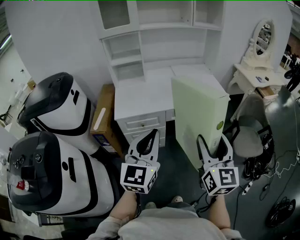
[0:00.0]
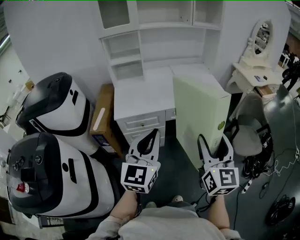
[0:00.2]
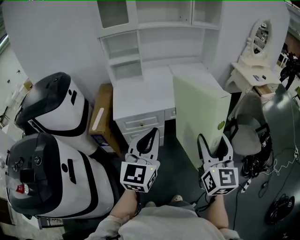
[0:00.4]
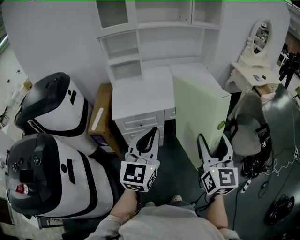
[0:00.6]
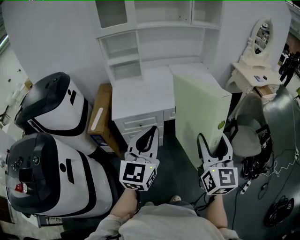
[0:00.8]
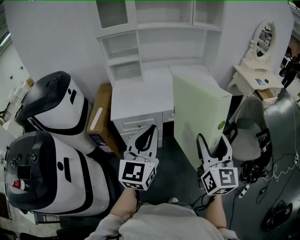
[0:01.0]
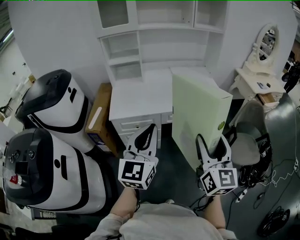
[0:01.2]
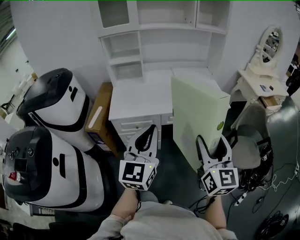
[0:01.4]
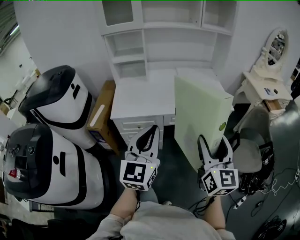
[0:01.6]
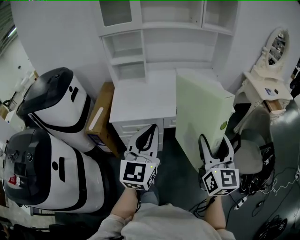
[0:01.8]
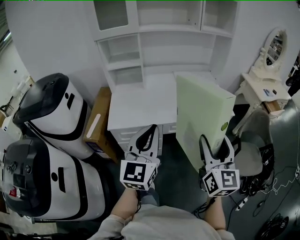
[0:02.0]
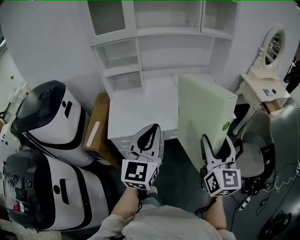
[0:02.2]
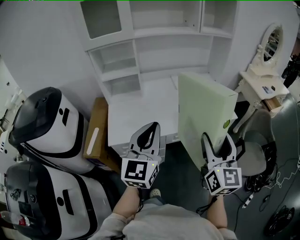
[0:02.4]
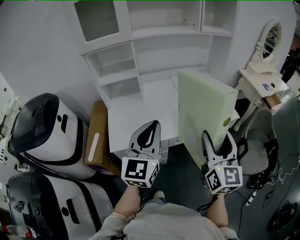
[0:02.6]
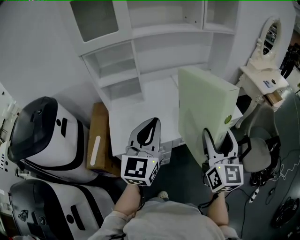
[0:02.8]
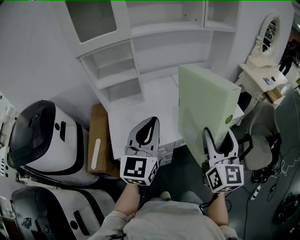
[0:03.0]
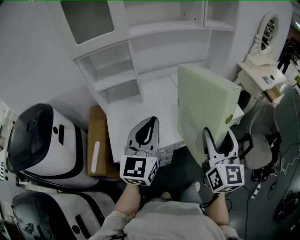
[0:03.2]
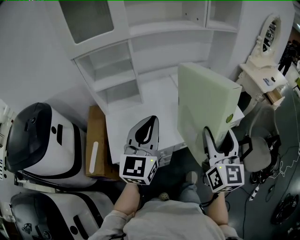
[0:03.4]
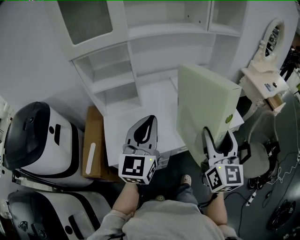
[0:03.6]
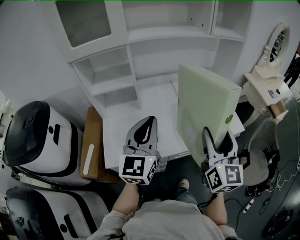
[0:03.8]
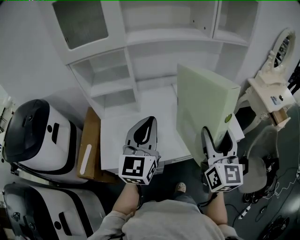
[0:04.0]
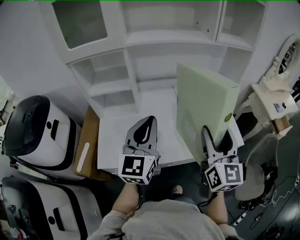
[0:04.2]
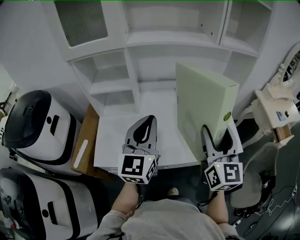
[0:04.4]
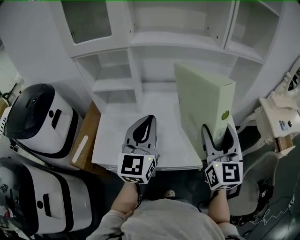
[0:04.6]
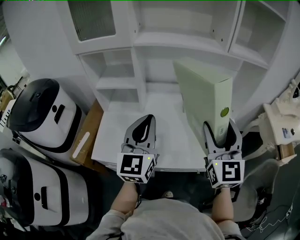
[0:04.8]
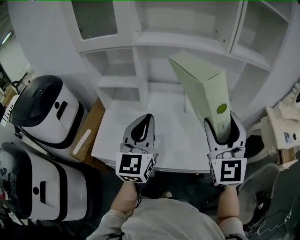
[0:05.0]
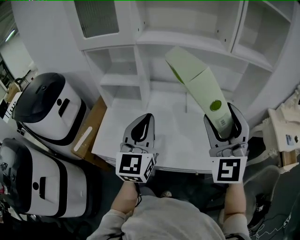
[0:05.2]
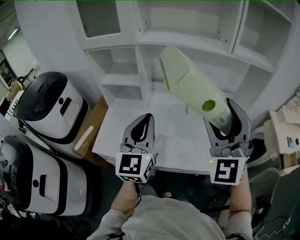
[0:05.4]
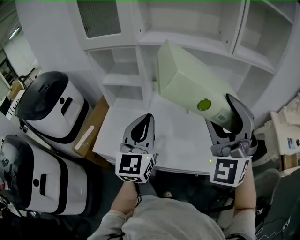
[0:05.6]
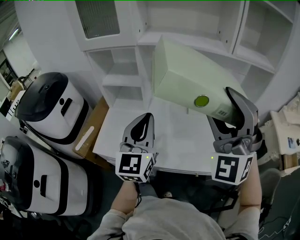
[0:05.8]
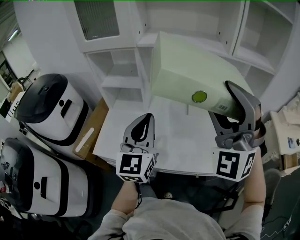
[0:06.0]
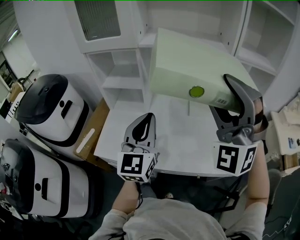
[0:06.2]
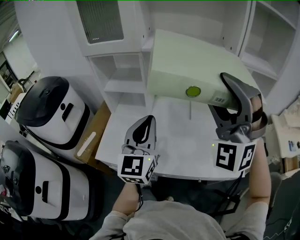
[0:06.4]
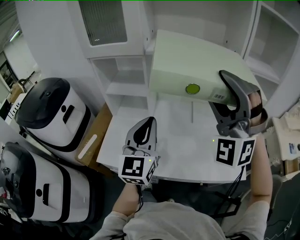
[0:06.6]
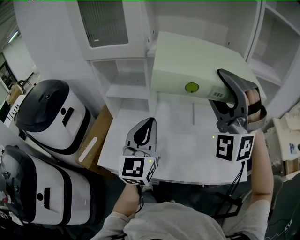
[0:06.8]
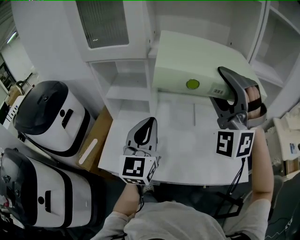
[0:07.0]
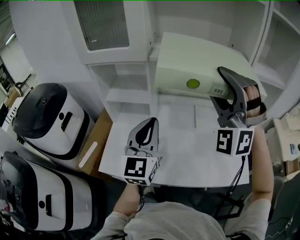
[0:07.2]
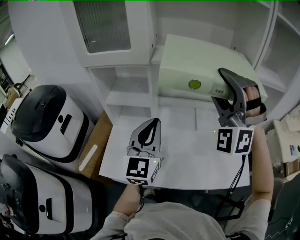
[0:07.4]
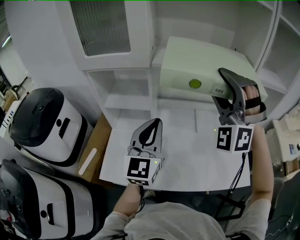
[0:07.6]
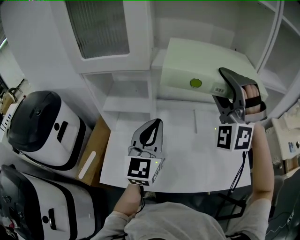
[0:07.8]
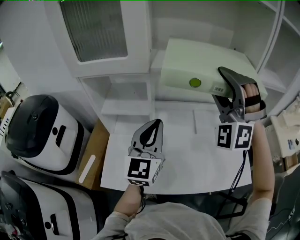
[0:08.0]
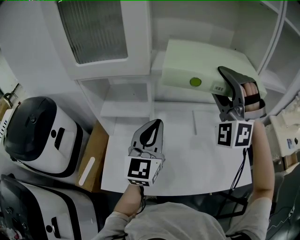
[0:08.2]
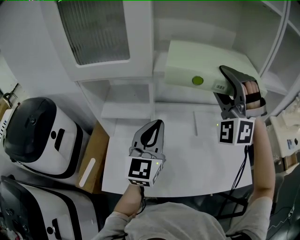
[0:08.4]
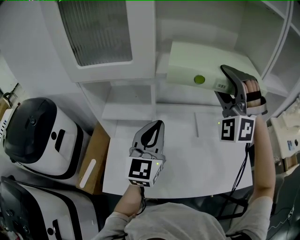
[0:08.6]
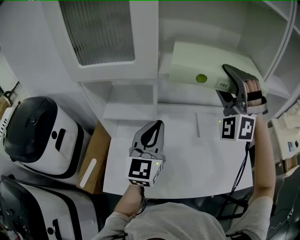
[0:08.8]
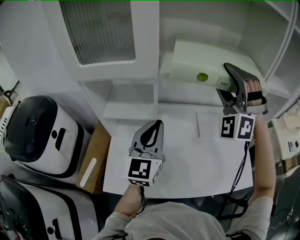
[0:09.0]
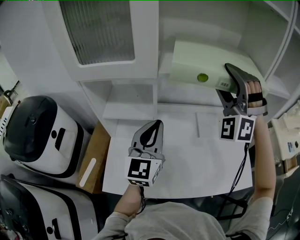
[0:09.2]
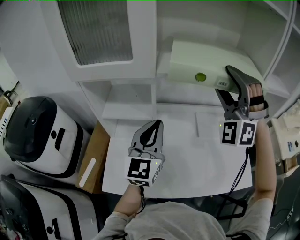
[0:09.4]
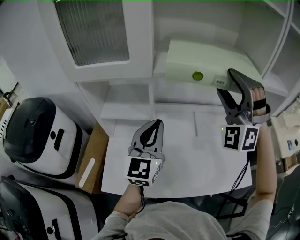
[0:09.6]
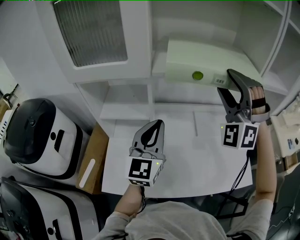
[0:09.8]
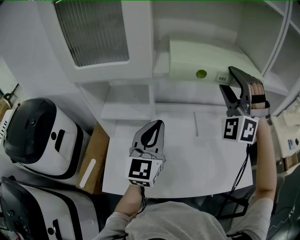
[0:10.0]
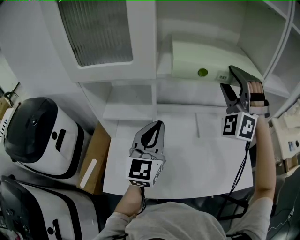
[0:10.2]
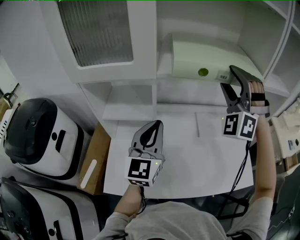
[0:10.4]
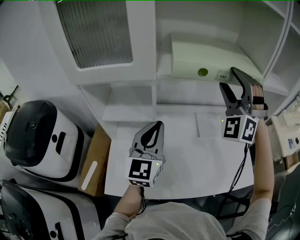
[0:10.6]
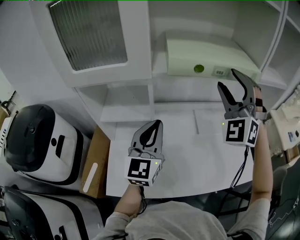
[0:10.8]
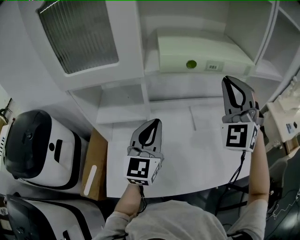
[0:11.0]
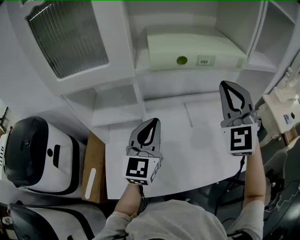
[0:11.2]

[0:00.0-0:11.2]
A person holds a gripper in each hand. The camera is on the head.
0:00.0 to 0:01.6: Both grippers travel together forward, roughly 5 cm.
0:01.6 to 0:03.2: The grippers both shift forward and to the left by some 25 cm.
0:03.2 to 0:04.8: The right gripper shifts approximately 20 cm forward, and changes its angle by roughly 30 degrees, while the left gripper moves forward and to the right, roughly 15 cm, and changes its angle by approximately 20 degrees.
0:04.8 to 0:06.4: The right gripper goes roughly 15 cm upward, to the left and forward, and rotates around the line of its fingers by roughly 70 degrees, counterclockwise from behind.
0:06.4 to 0:08.0: The two grippers go approximately 15 cm forward.
0:08.0 to 0:09.6: The grippers move only a little.
0:09.6 to 0:11.2: The right gripper moves some 5 cm, turns by approximately 40 degrees, and closes its fingers.

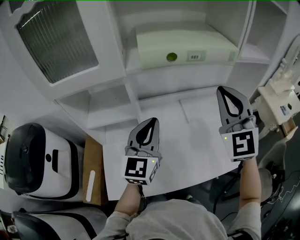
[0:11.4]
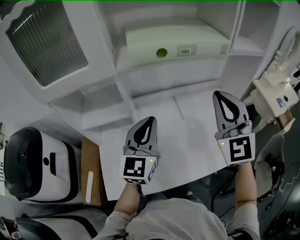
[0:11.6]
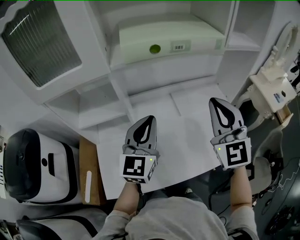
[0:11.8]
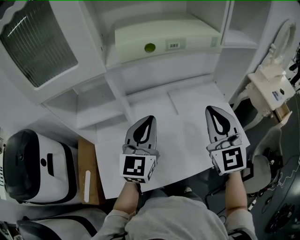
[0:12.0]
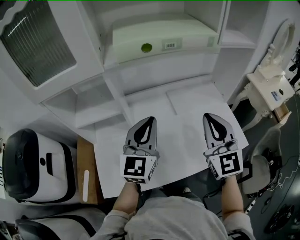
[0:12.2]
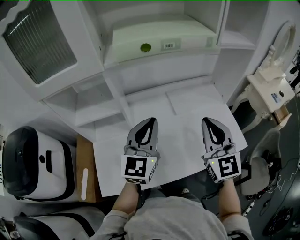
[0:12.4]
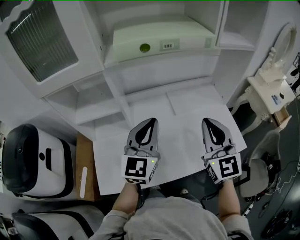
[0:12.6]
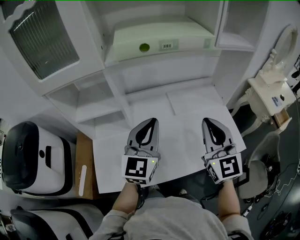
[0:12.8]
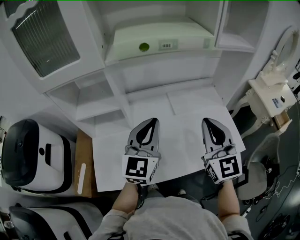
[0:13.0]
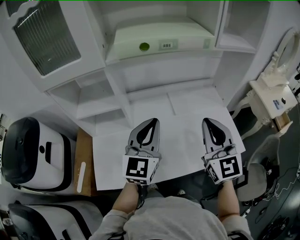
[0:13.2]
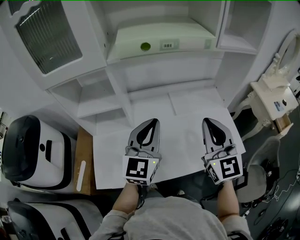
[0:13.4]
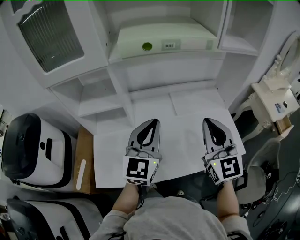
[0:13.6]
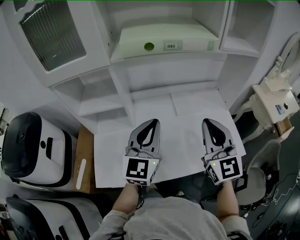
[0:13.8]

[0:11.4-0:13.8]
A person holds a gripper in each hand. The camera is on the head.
0:11.4 to 0:12.6: The left gripper travels to the right by approximately 5 cm; the right gripper is displaced downward and backward by some 15 cm, and swivels some 20 degrees.
0:12.6 to 0:13.8: There are only small adjustments of the grippers.

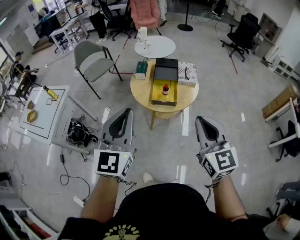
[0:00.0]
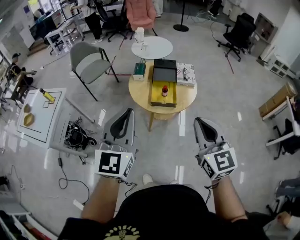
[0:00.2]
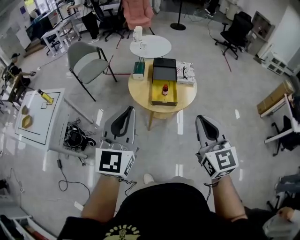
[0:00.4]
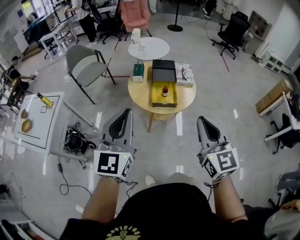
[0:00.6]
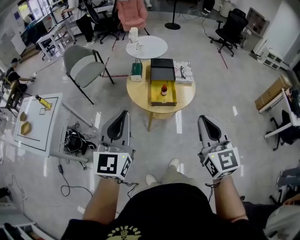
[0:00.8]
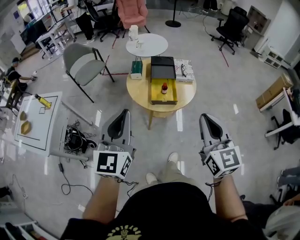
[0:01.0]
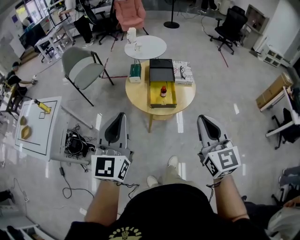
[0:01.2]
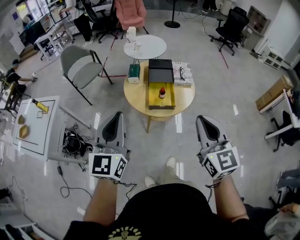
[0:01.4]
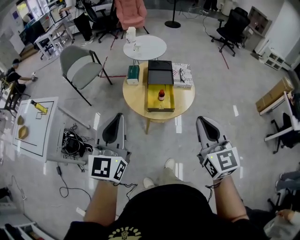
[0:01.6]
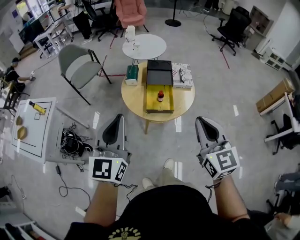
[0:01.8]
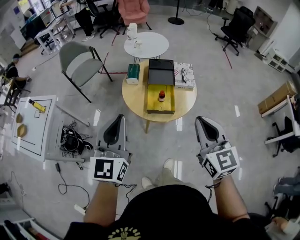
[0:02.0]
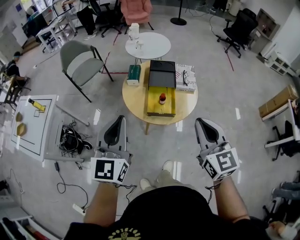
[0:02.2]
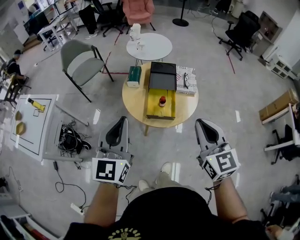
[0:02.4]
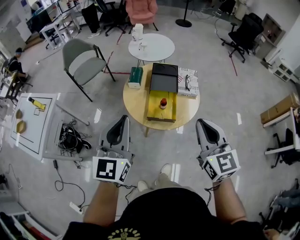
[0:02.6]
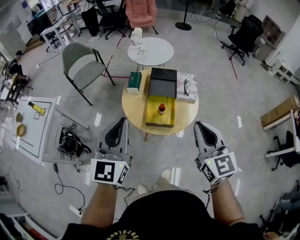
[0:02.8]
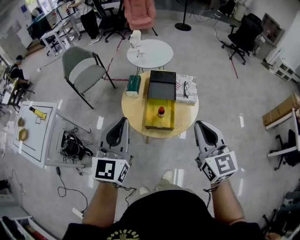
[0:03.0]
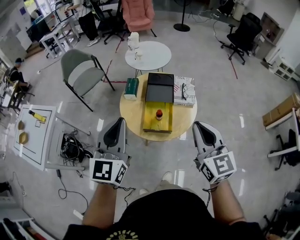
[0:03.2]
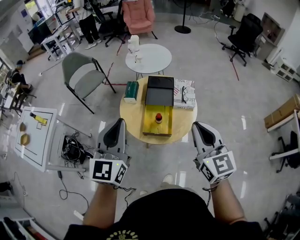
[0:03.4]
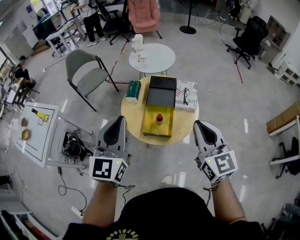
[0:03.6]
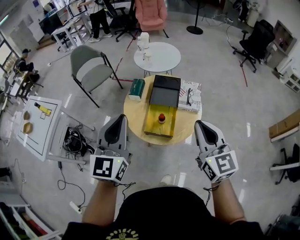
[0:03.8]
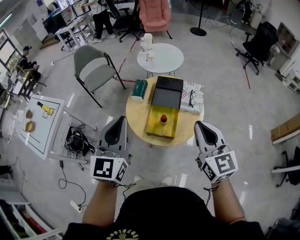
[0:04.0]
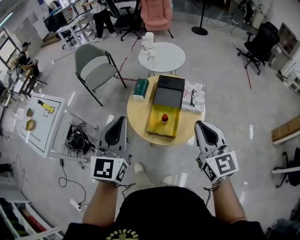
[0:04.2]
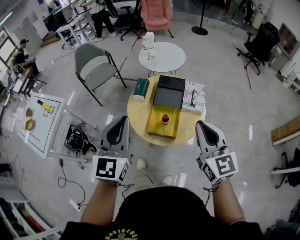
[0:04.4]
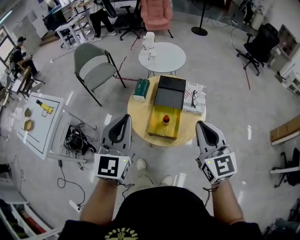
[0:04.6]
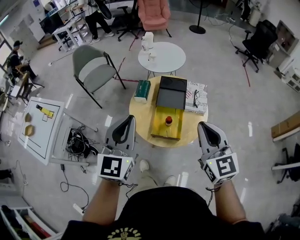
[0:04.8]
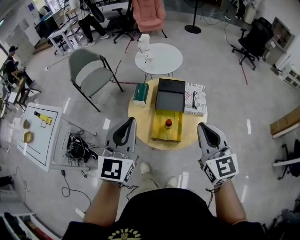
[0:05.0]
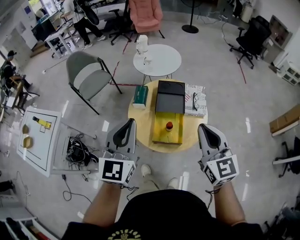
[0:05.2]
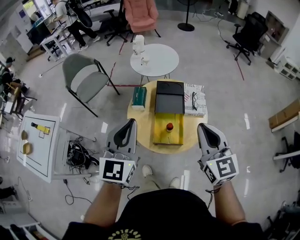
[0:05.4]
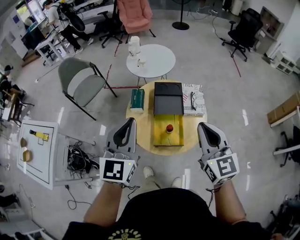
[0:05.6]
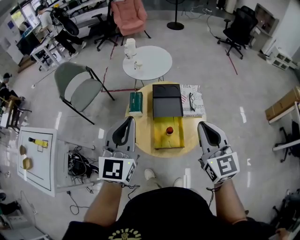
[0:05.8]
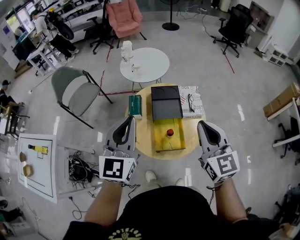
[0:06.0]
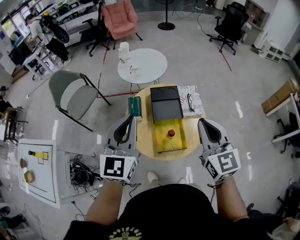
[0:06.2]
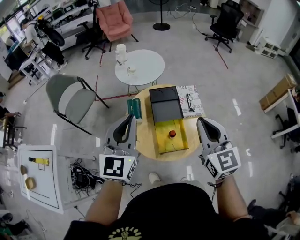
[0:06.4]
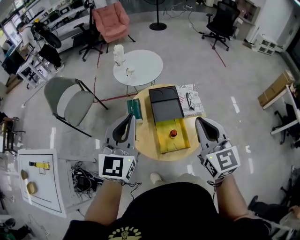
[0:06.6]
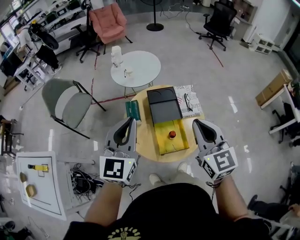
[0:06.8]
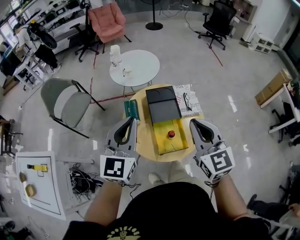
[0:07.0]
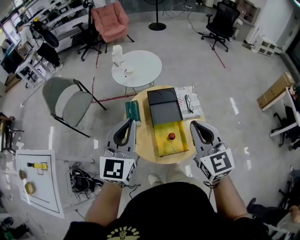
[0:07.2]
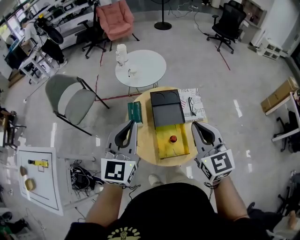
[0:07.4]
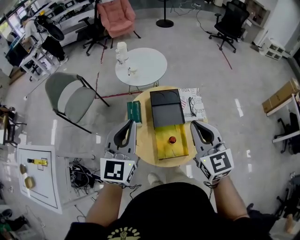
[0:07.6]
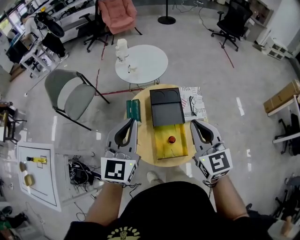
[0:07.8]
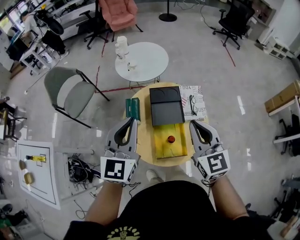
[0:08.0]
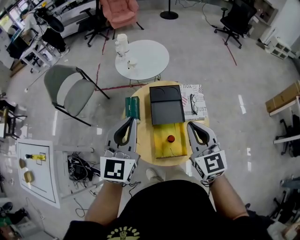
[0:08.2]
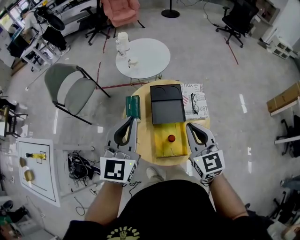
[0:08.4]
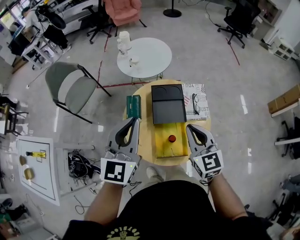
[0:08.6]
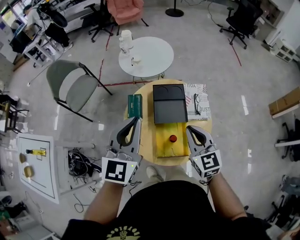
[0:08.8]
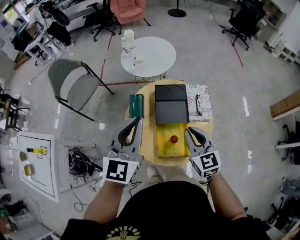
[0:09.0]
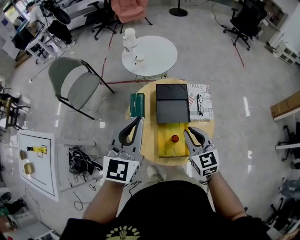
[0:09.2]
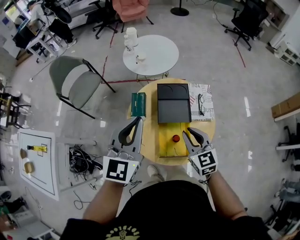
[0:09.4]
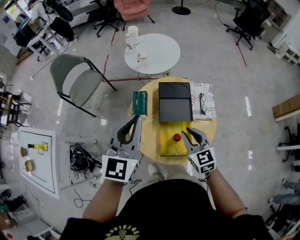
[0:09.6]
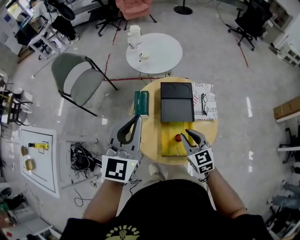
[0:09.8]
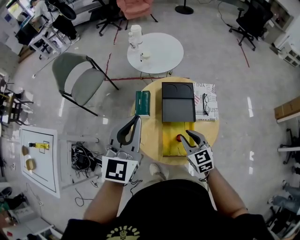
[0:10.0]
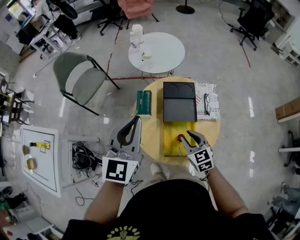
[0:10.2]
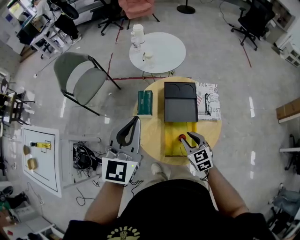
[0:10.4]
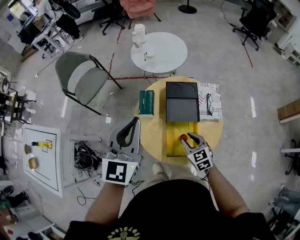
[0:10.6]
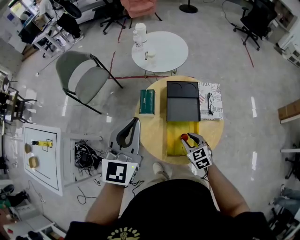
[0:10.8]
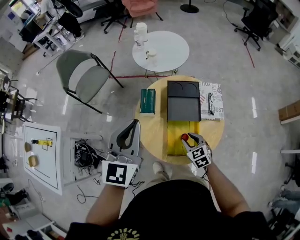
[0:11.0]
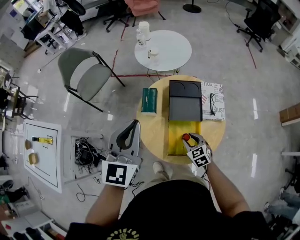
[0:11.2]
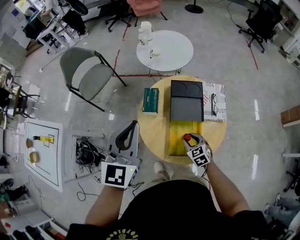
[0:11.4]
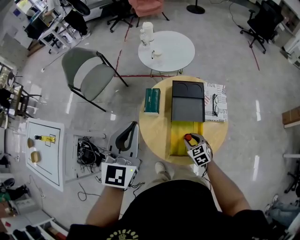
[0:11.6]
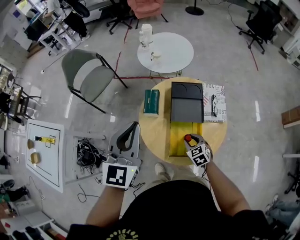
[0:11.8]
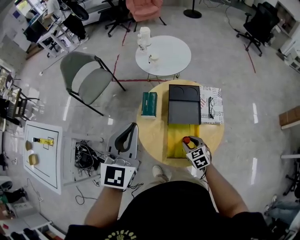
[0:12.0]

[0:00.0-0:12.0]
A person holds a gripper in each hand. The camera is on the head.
0:00.0 to 0:01.6: The right gripper moves forward, roughly 5 cm, while the left gripper shifts roughly 10 cm forward and to the left.
0:01.6 to 0:03.0: The left gripper heads forward and to the right, covering some 15 cm. The right gripper travels forward by approximately 15 cm.
0:03.0 to 0:04.4: The right gripper is displaced forward by some 5 cm.
0:04.4 to 0:06.0: The left gripper goes roughly 15 cm forward, while the right gripper travels forward and to the left by some 10 cm.
0:06.0 to 0:07.6: The two grippers go some 5 cm forward.
0:07.6 to 0:09.0: The right gripper moves downward, about 10 cm.
0:09.0 to 0:10.4: The right gripper moves downward, approximately 15 cm, and opens its fingers.
0:10.4 to 0:12.0: The right gripper heads downward, covering about 10 cm.
